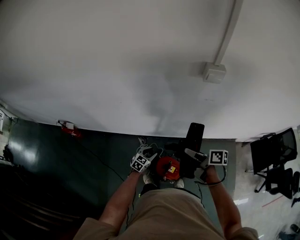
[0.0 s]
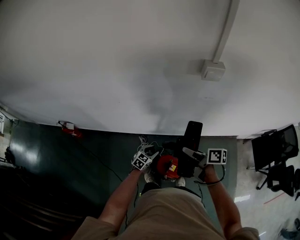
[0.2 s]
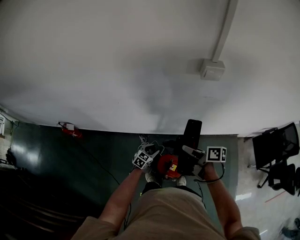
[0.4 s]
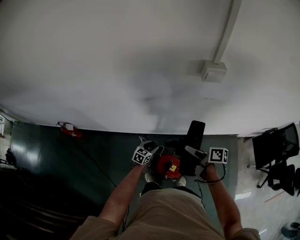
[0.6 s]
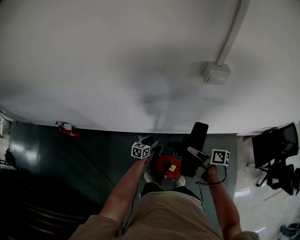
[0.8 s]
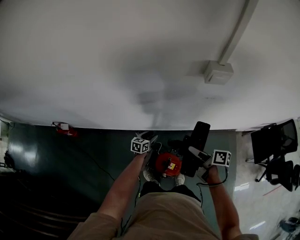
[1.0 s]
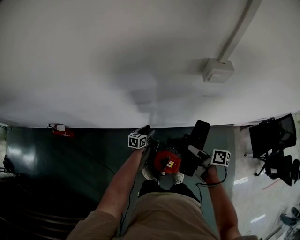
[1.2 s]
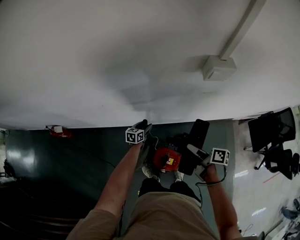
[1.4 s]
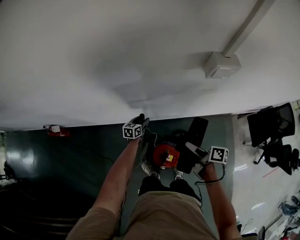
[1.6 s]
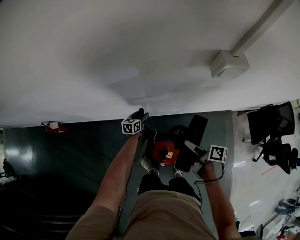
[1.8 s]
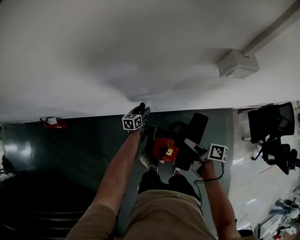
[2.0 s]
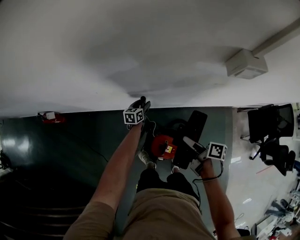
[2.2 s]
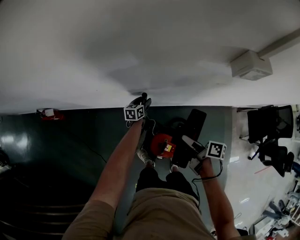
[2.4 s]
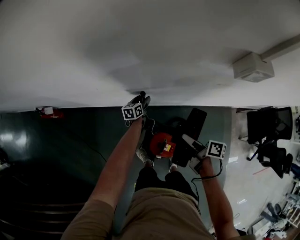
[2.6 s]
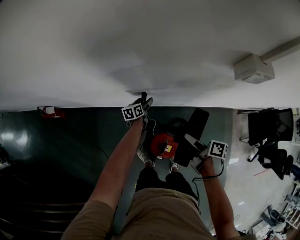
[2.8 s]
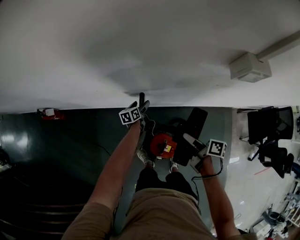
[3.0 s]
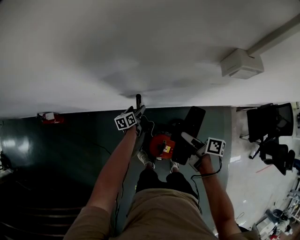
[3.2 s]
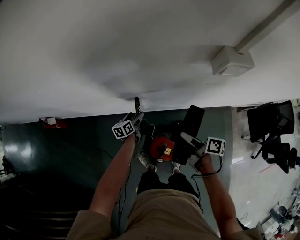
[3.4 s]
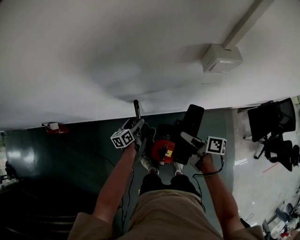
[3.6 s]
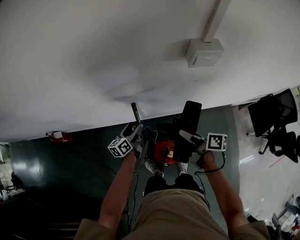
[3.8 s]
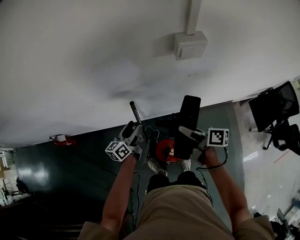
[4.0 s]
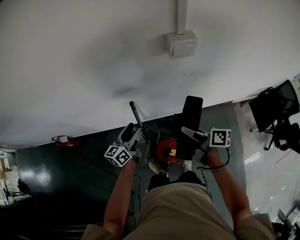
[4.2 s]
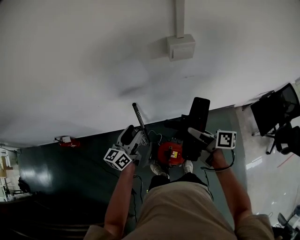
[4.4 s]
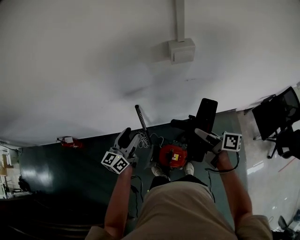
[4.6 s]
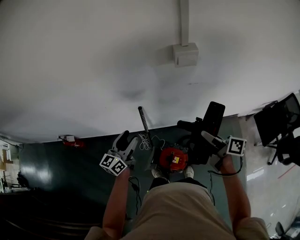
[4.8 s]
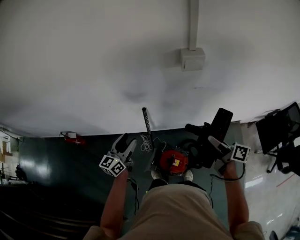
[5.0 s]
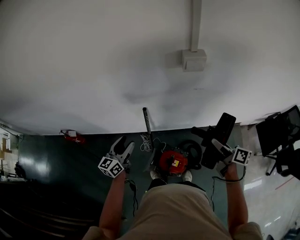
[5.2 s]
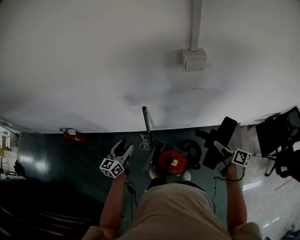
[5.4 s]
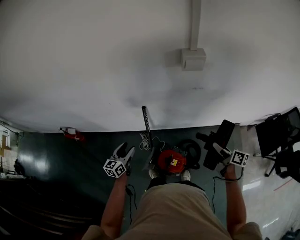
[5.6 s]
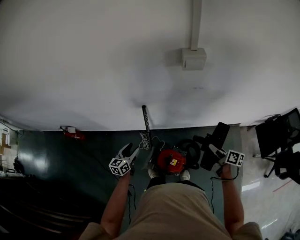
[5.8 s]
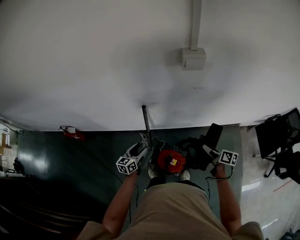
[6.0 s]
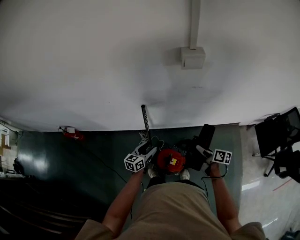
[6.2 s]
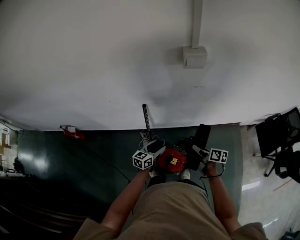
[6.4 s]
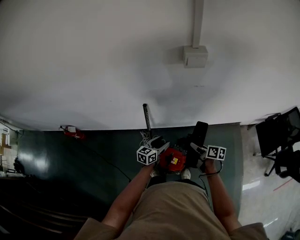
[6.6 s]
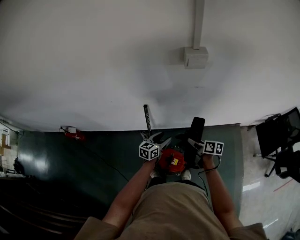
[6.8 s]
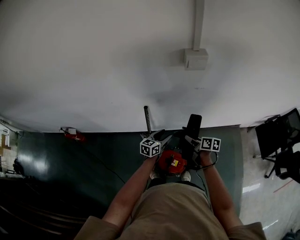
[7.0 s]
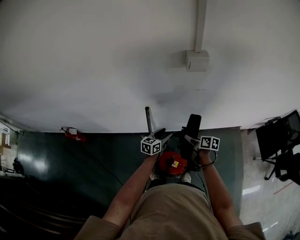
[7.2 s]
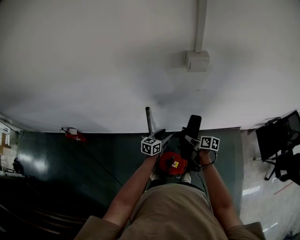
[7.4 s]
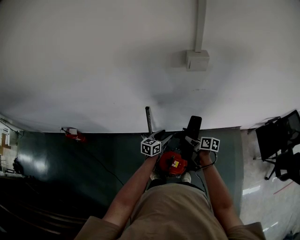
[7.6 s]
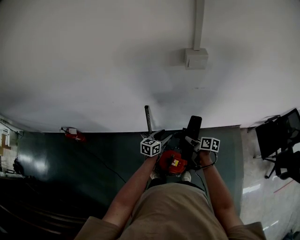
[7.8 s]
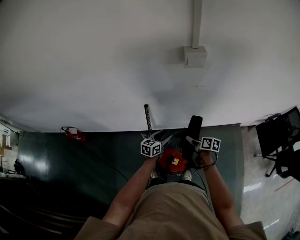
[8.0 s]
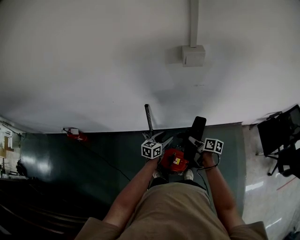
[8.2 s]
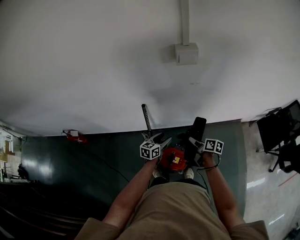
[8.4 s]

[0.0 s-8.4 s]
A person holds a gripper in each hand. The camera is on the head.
0.0 to 1.4 s: The right gripper shifts some 10 cm downward and forward, while the left gripper is displaced forward by approximately 20 cm, and turns by roughly 30 degrees.
1.4 to 2.8 s: The right gripper heads to the left, covering roughly 5 cm. Meanwhile the left gripper heads forward, covering approximately 10 cm, changes its angle by some 20 degrees, and opens up.
2.8 to 4.2 s: The left gripper goes some 35 cm upward and backward, and swivels approximately 30 degrees. Meanwhile the right gripper moves upward and to the right, about 15 cm.
4.2 to 5.6 s: The right gripper heads to the right, downward and backward, covering about 20 cm. The left gripper travels to the left, backward and downward by roughly 15 cm.
5.6 to 7.0 s: The left gripper shifts approximately 20 cm to the right, while the right gripper shifts about 20 cm to the left, downward and forward.
7.0 to 8.4 s: The right gripper shifts by roughly 5 cm.

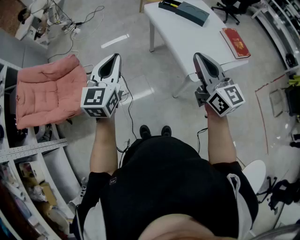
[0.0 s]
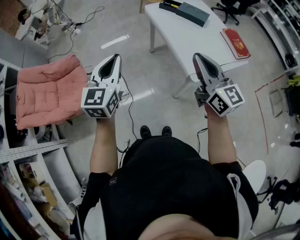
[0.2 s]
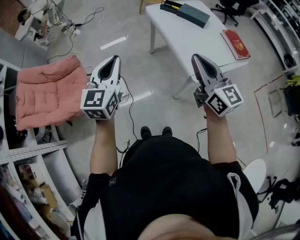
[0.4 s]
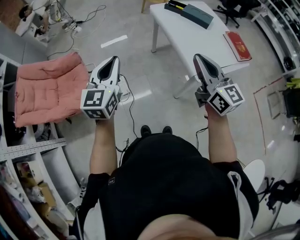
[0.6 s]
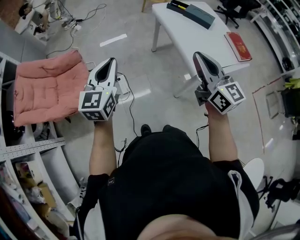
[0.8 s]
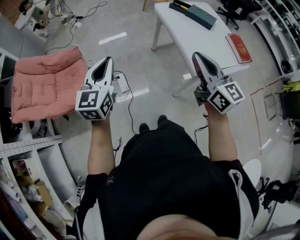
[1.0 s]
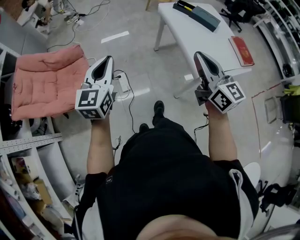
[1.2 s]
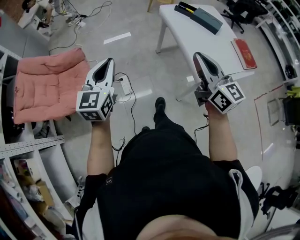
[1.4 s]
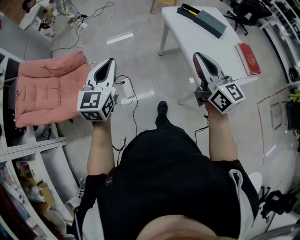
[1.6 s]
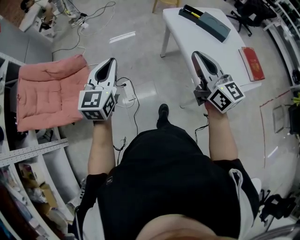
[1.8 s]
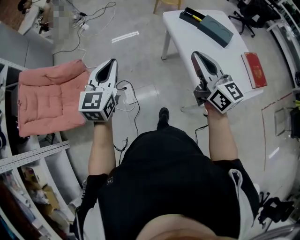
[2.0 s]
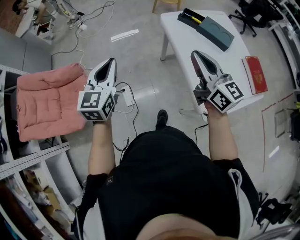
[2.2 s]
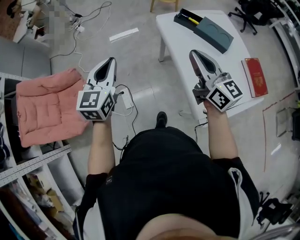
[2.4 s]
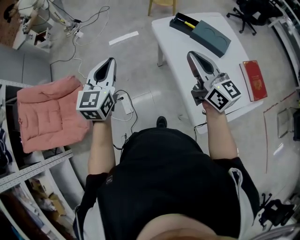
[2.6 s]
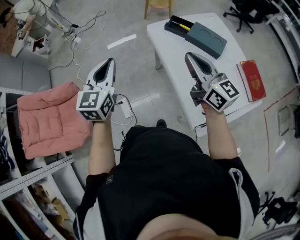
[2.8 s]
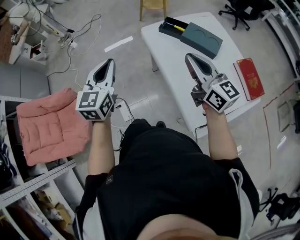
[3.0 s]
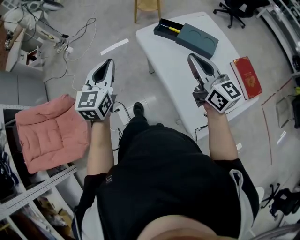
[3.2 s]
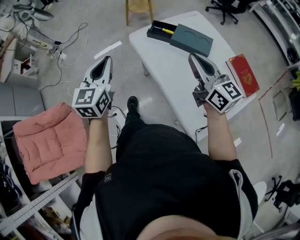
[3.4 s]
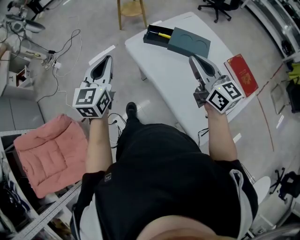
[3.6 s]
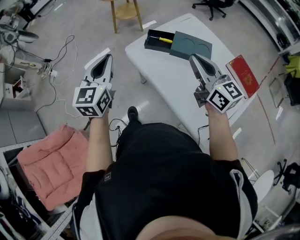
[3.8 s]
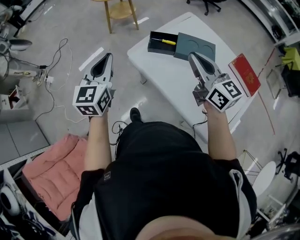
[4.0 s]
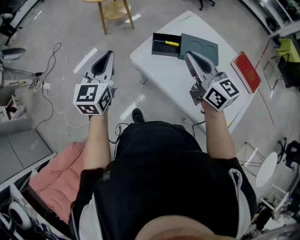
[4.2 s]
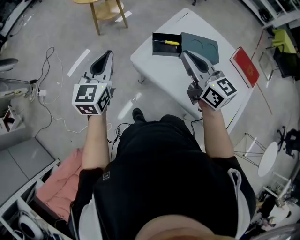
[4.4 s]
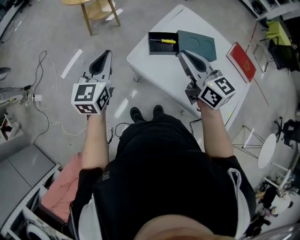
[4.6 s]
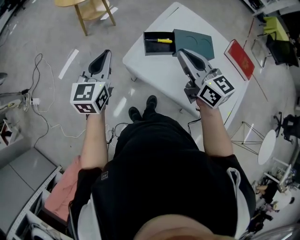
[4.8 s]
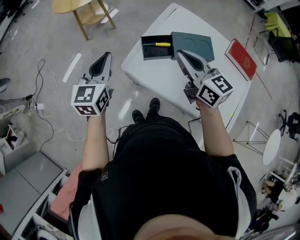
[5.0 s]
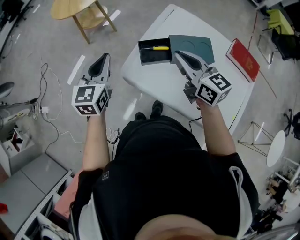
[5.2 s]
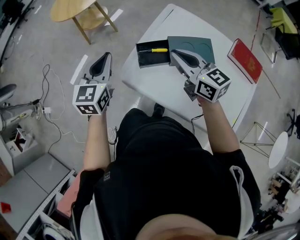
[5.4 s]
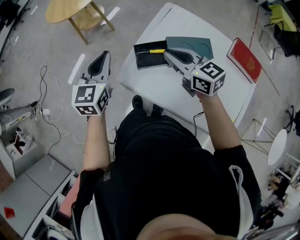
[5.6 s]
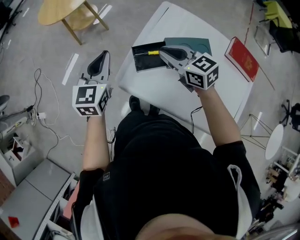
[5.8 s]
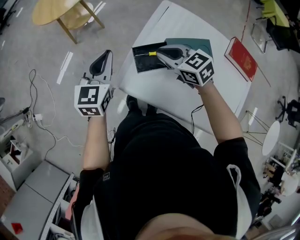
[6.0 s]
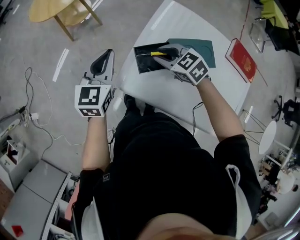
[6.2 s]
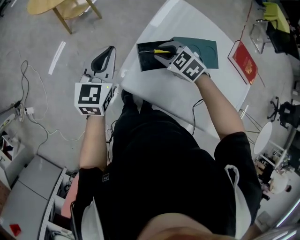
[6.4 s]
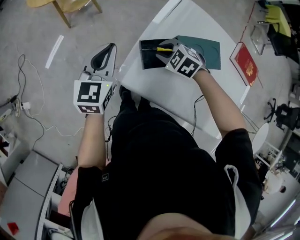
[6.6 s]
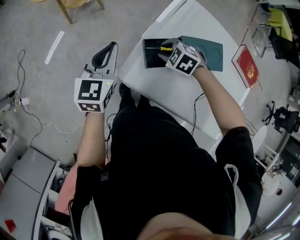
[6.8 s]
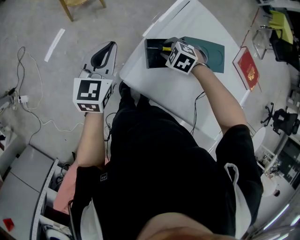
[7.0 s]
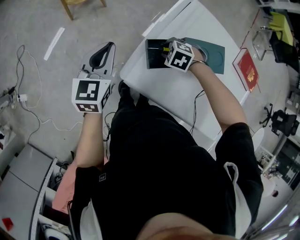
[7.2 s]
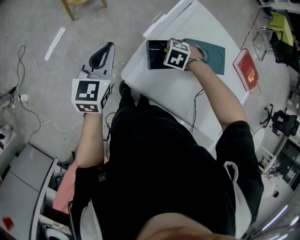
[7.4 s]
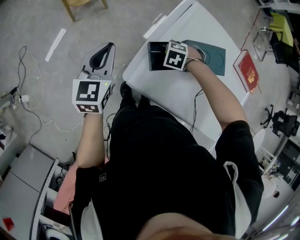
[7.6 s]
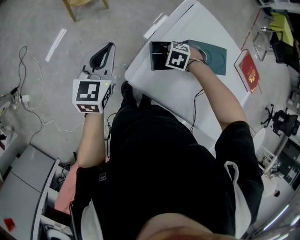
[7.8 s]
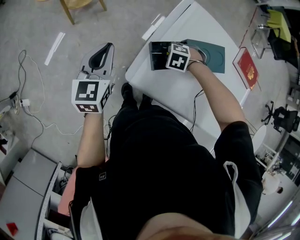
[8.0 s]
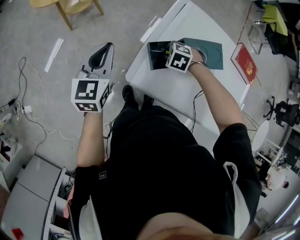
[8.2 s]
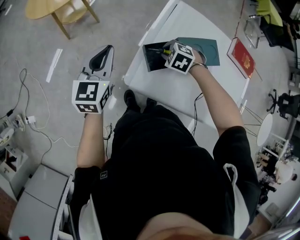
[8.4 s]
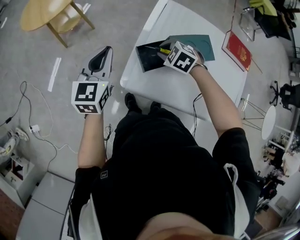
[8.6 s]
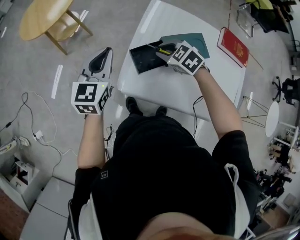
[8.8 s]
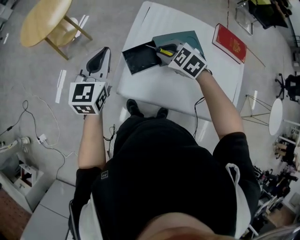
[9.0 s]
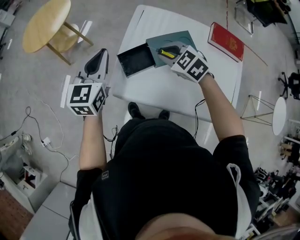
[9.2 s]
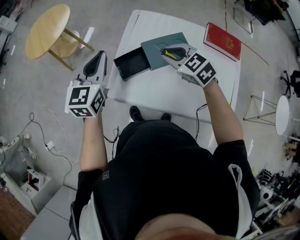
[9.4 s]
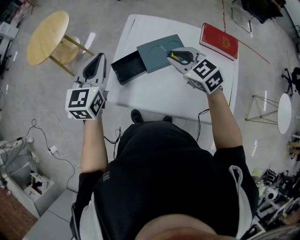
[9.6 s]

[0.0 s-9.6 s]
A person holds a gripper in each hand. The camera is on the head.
0.0 to 1.6 s: The right gripper shifts some 15 cm forward and to the left. The left gripper moves to the left and forward, about 15 cm.
1.6 to 3.2 s: Both grippers move forward and to the right, roughly 35 cm.
3.2 to 4.8 s: The left gripper shifts by approximately 40 cm, and rotates some 30 degrees. The right gripper shifts by some 25 cm, and changes its angle by roughly 30 degrees.
4.8 to 6.4 s: The left gripper shifts about 20 cm forward, to the right and downward. Meanwhile the right gripper moves downward and forward, about 25 cm, tips its fingers downward by some 40 degrees, and opens its fingers.
6.4 to 8.0 s: The left gripper ends up some 5 cm from where it was; the right gripper heads downward, covering some 10 cm, and points its fingers about 30 degrees further downward.
8.0 to 9.6 s: The left gripper changes place by roughly 25 cm; the right gripper is displaced upward by some 25 cm, and angles its fingers upward, by some 50 degrees.

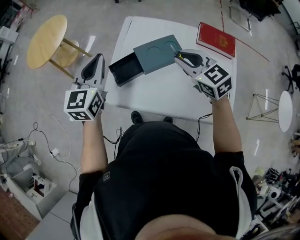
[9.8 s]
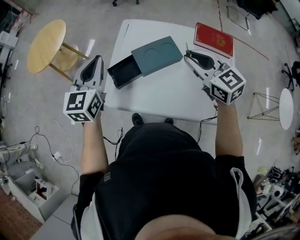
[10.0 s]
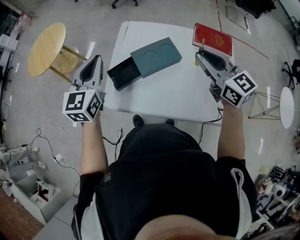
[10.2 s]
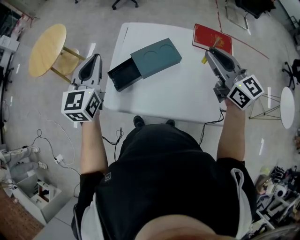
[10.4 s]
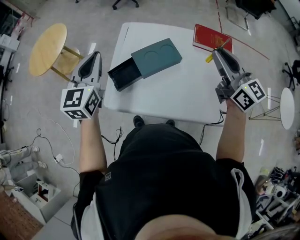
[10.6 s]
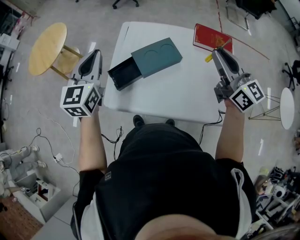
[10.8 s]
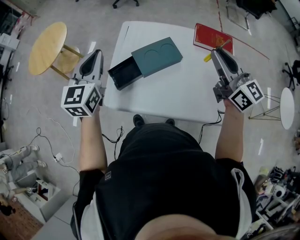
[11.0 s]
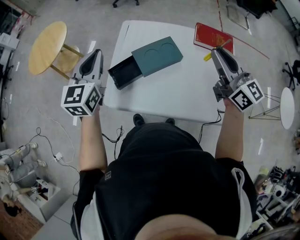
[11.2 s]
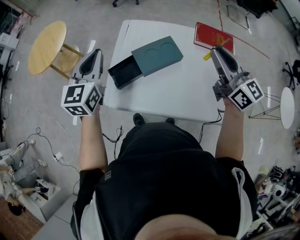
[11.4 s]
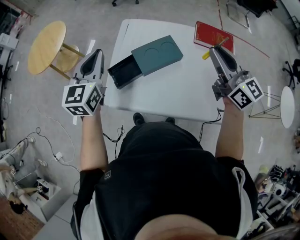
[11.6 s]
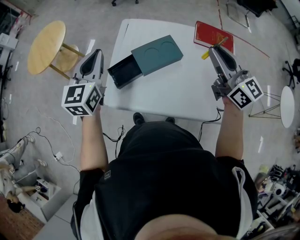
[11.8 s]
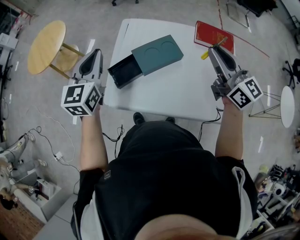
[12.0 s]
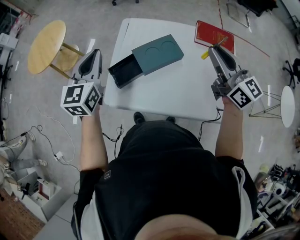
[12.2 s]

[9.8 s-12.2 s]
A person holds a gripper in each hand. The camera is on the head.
9.8 to 11.0 s: The right gripper travels to the right and upward by about 15 cm, and tilts its fingers some 30 degrees upward.
11.0 to 12.2 s: The grippers make only small movements.

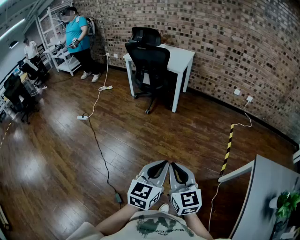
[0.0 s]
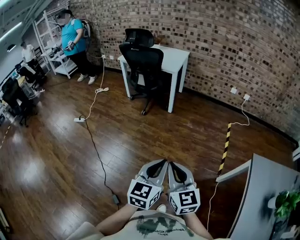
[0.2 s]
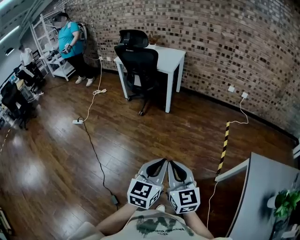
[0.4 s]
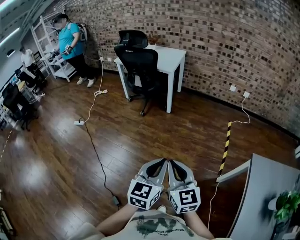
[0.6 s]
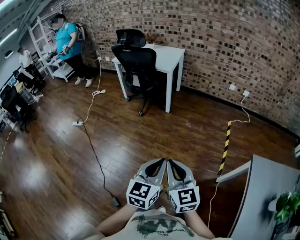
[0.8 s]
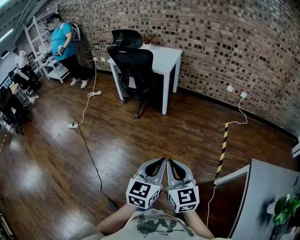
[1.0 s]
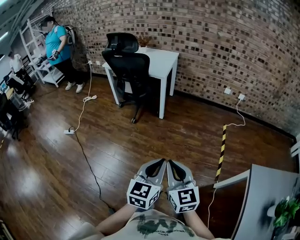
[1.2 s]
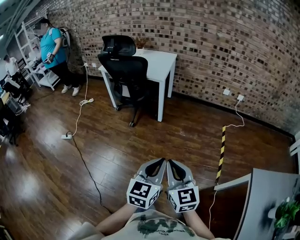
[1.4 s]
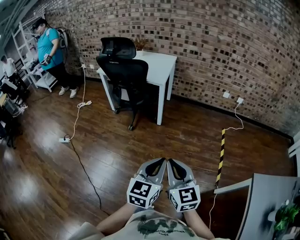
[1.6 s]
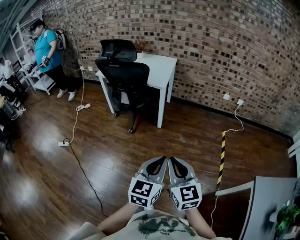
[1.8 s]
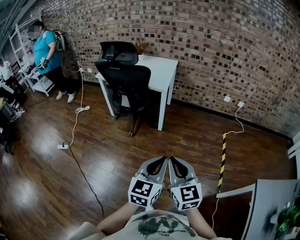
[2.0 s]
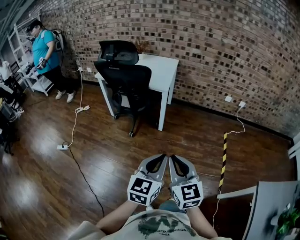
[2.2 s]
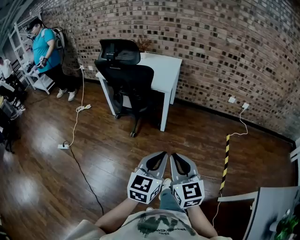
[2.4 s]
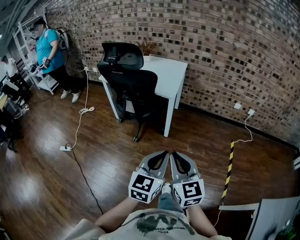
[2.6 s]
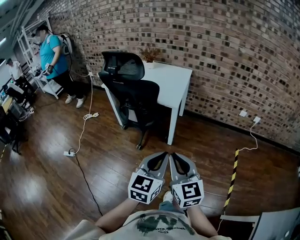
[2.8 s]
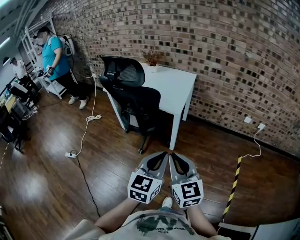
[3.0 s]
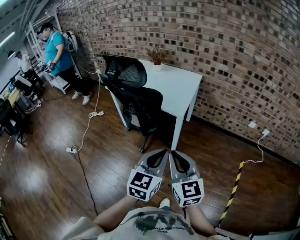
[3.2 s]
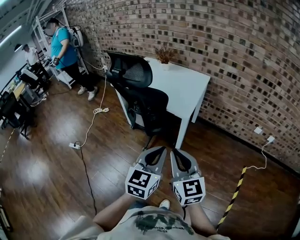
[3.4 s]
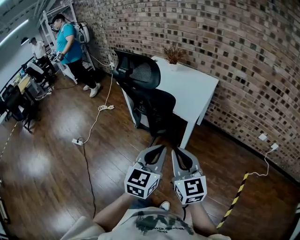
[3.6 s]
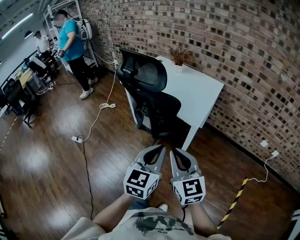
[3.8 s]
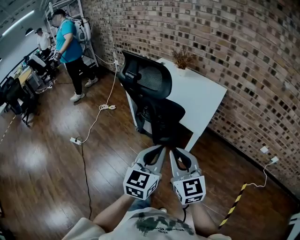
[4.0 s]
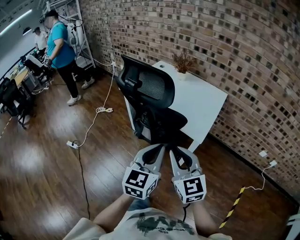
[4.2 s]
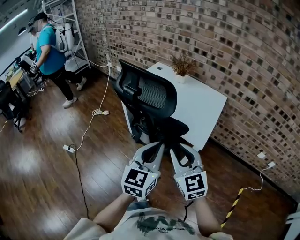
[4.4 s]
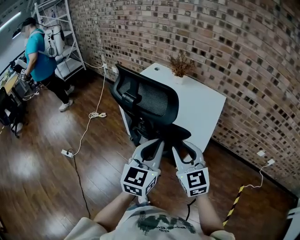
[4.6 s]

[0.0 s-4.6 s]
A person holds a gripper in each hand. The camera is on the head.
0.0 to 1.6 s: The grippers both shift forward by roughly 25 cm.
1.6 to 3.0 s: Both grippers move forward, roughly 30 cm.
3.0 to 4.6 s: The right gripper is displaced forward by roughly 35 cm, and opens. Meanwhile the left gripper goes approximately 35 cm forward and to the left.
